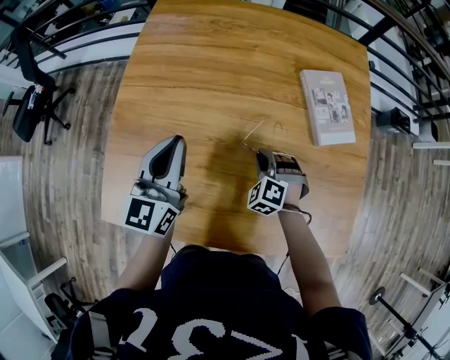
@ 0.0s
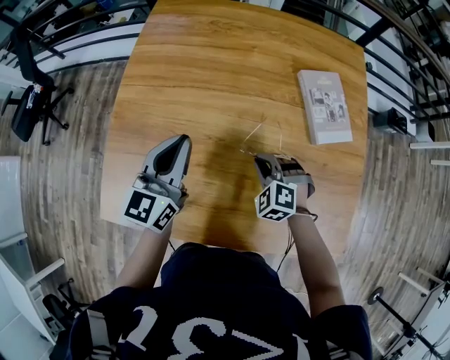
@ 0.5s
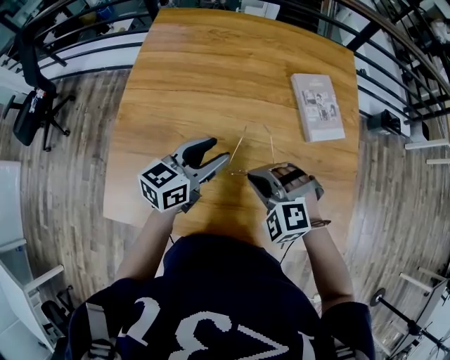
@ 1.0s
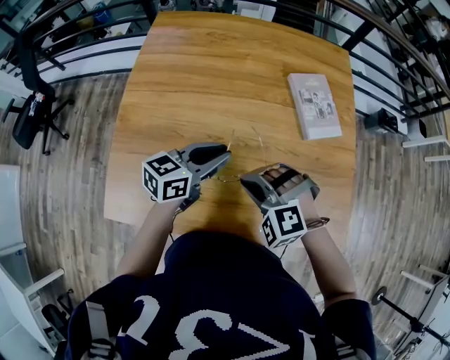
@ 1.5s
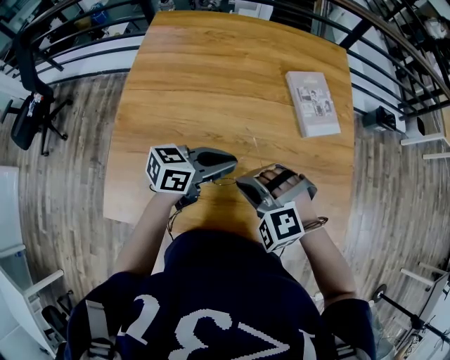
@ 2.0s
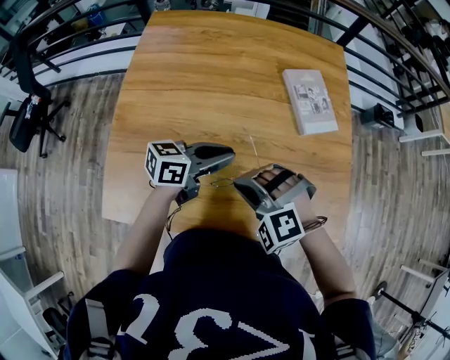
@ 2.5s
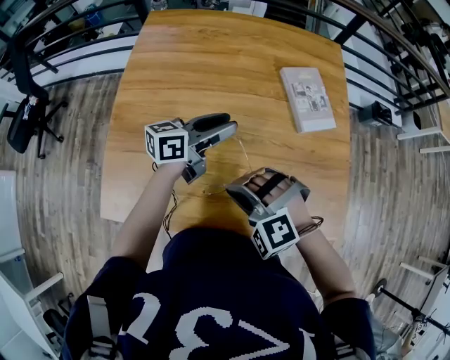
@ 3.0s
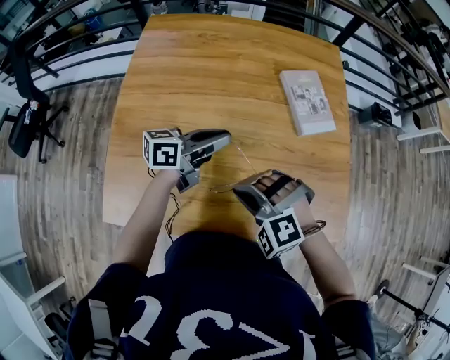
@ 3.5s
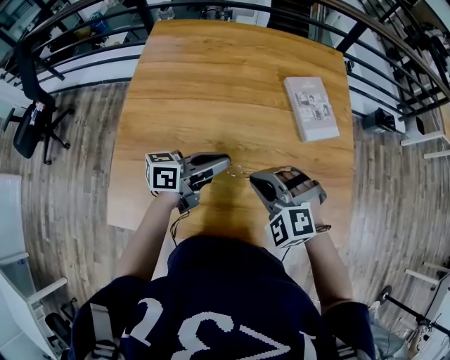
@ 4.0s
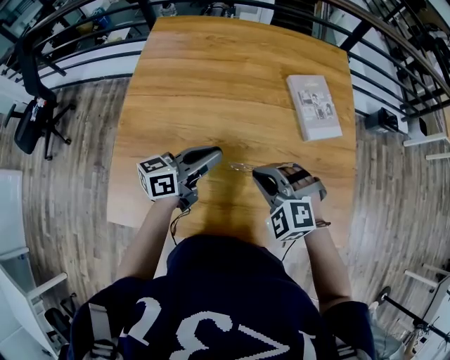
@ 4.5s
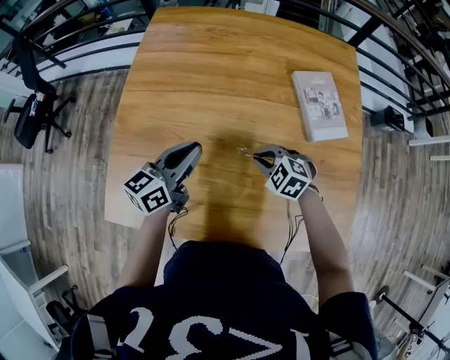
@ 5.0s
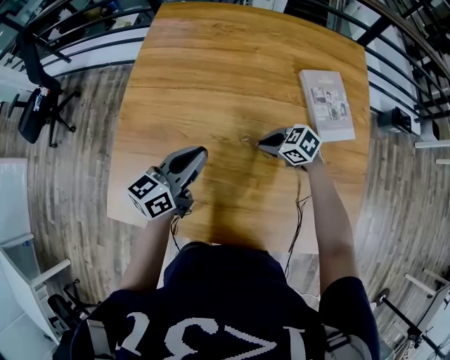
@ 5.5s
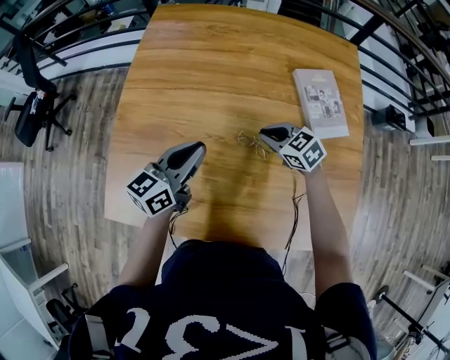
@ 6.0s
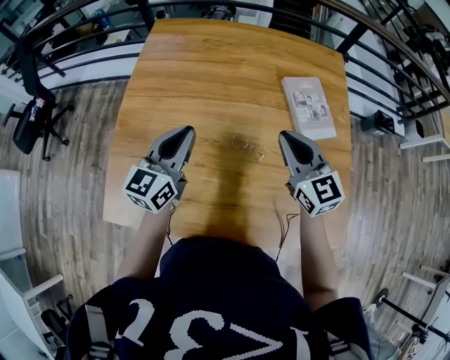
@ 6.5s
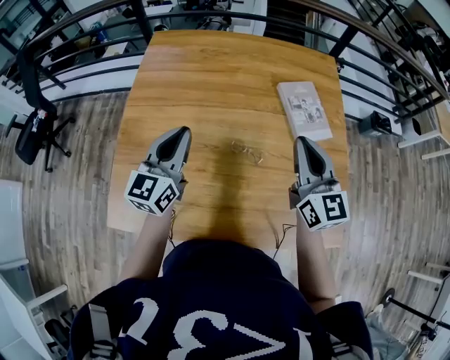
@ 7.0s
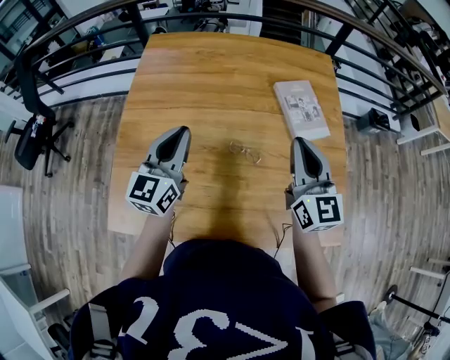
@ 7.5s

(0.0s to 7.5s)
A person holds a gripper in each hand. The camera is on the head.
0.0s - 2.0s: The left gripper is displaced to the right and backward by some 15 cm, rotates roughly 60 degrees, and opens, then closes once more; the right gripper is displaced upward and backward by approximately 20 cm, and rotates about 30 degrees.
2.0s - 4.0s: The left gripper goes forward and returns, roughly 10 cm each way, and opens, then closes again.
4.0s - 5.5s: The right gripper goes about 20 cm downward, and turns by some 60 degrees, while the left gripper moves about 5 cm, and swivels about 30 degrees.
5.5s - 7.5s: The left gripper travels upward by approximately 10 cm, and rotates some 30 degrees. The right gripper heads upward, covering approximately 30 cm, and tips its fingers upward by about 50 degrees.

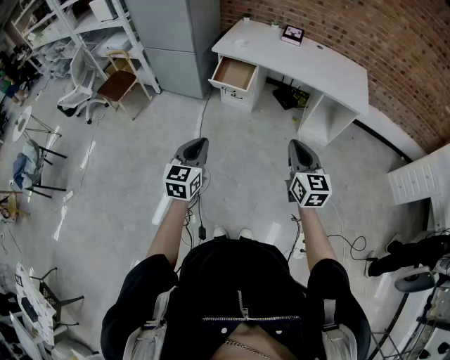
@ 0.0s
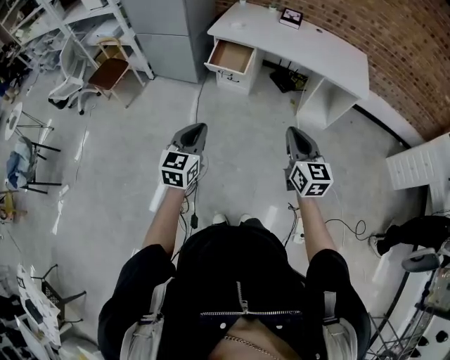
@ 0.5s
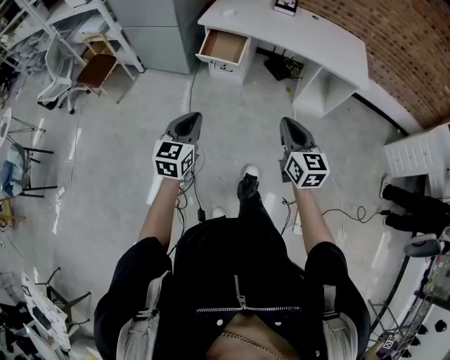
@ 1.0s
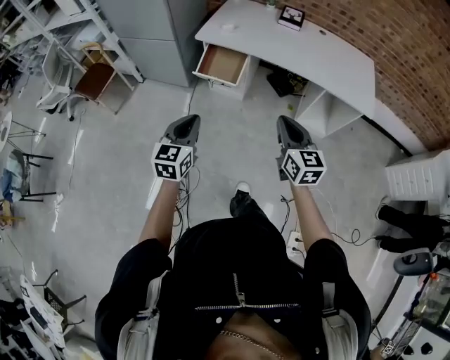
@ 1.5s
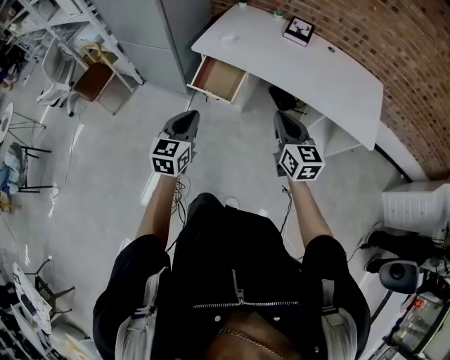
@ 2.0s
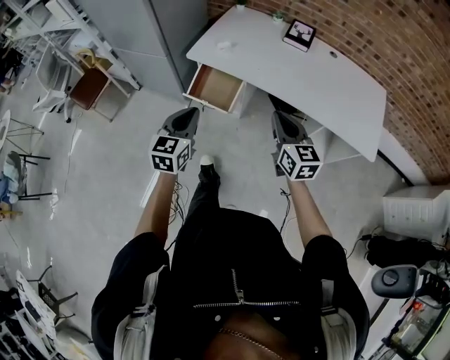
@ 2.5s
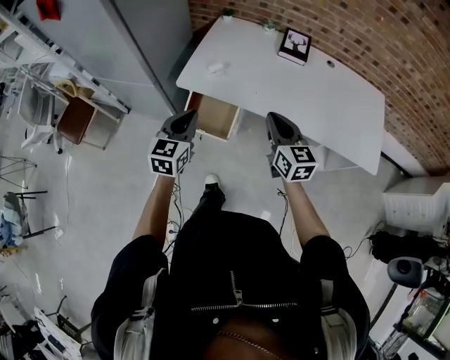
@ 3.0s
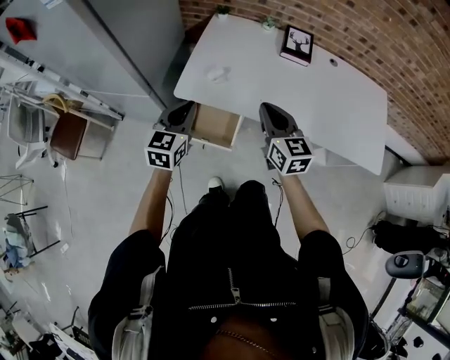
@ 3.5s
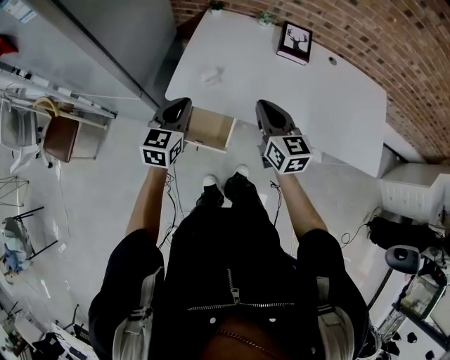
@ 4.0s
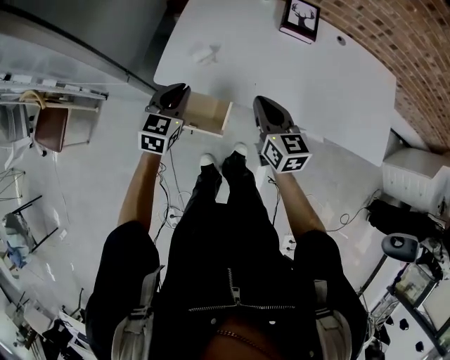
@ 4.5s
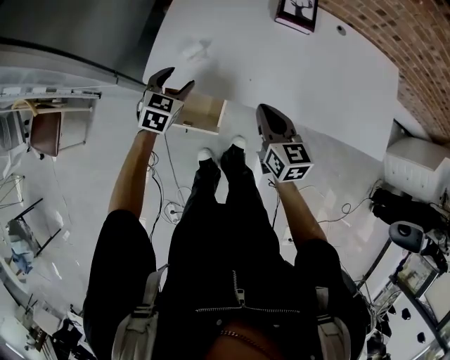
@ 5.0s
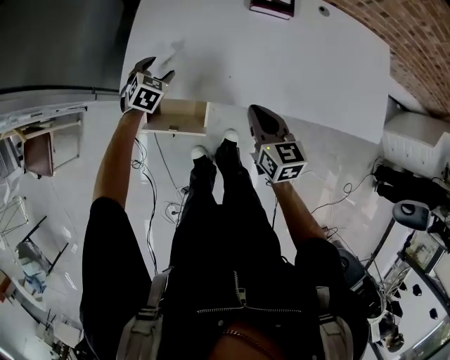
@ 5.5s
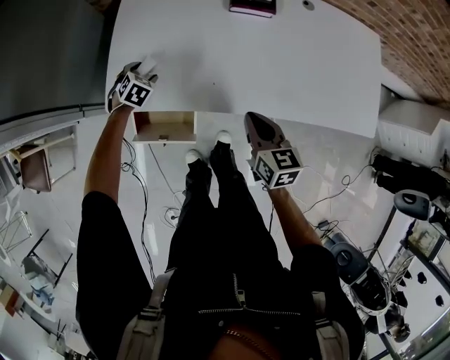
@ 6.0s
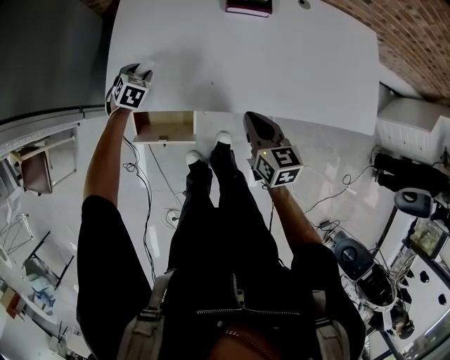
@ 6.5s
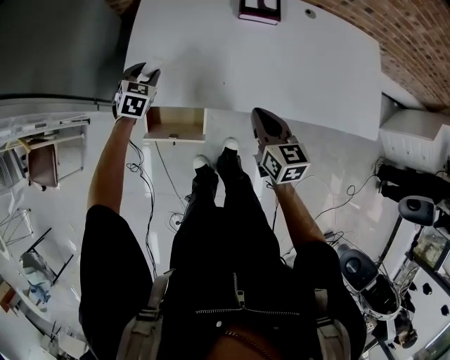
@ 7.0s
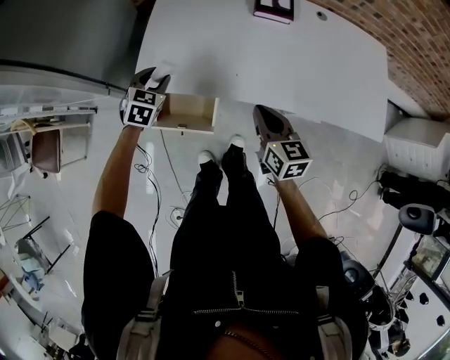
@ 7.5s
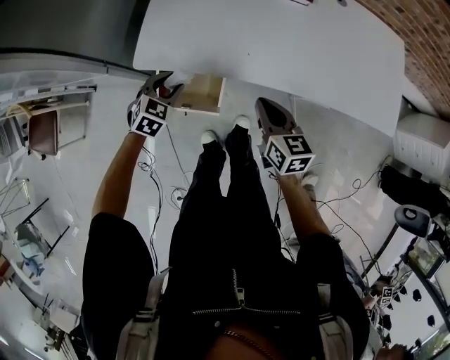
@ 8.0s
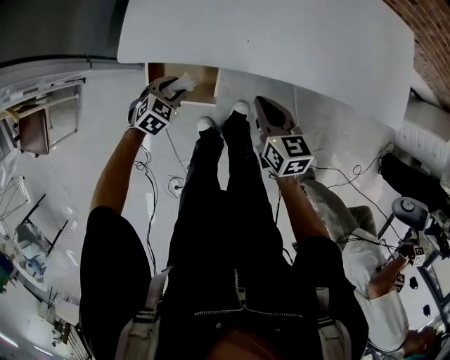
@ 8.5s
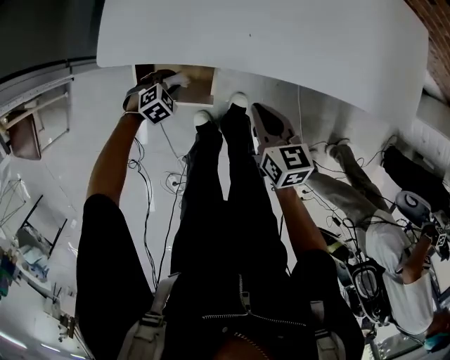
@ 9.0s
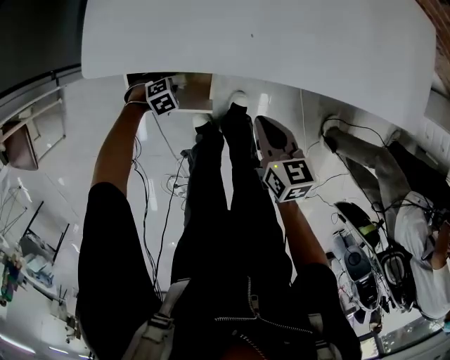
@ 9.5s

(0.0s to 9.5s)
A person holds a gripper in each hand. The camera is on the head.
0.0s - 2.0s: Both grippers travel together forward, roughly 35 cm.
2.0s - 4.0s: Both grippers move forward, roughly 35 cm.
4.0s - 5.5s: The right gripper goes roughly 15 cm downward and to the right. The left gripper goes about 25 cm downward and forward, angles its fingers downward, by approximately 30 degrees, and opens up.
5.5s - 7.5s: The left gripper is displaced upward and backward by roughly 10 cm, and closes its fingers.
7.5s - 9.5s: The right gripper travels downward by roughly 20 cm; the left gripper goes approximately 40 cm downward, and tilts its fingers roughly 40 degrees downward.

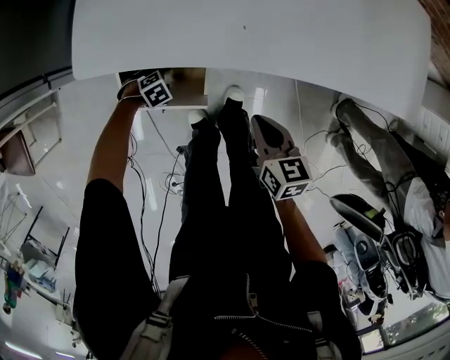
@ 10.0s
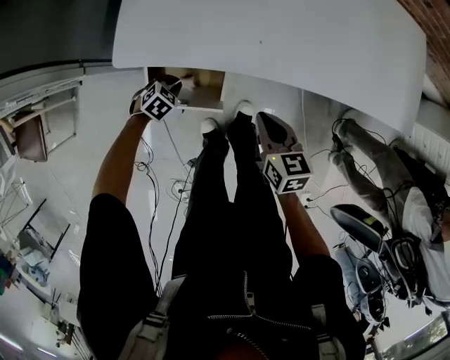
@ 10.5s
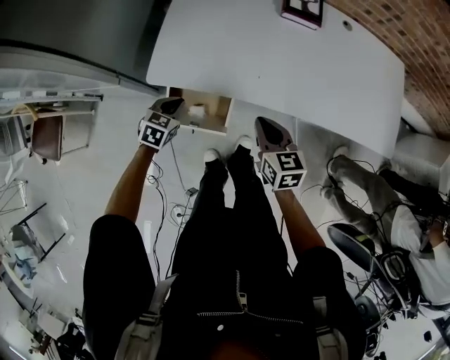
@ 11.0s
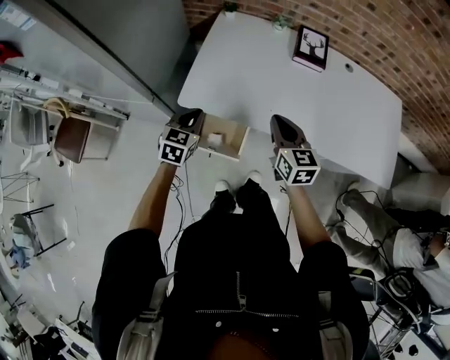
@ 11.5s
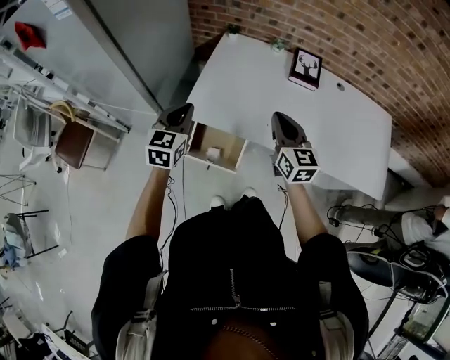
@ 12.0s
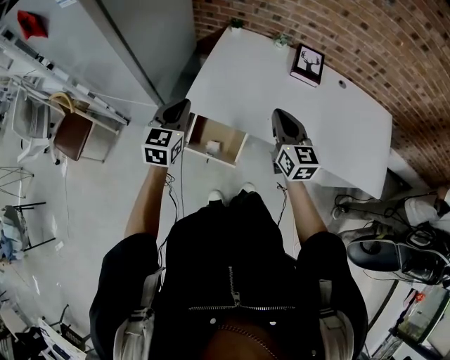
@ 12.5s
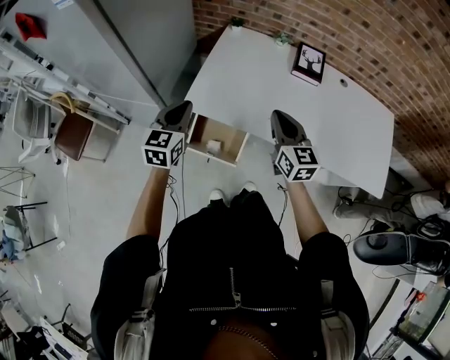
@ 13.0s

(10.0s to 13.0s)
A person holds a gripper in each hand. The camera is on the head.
10.0s - 11.5s: The right gripper travels upward by some 25 cm, and rotates about 30 degrees; the left gripper is displaced upward by roughly 40 cm, tips its fingers upward by some 50 degrees, and closes.
11.5s - 13.0s: The right gripper travels upward by about 5 cm. The left gripper shifts about 10 cm upward.

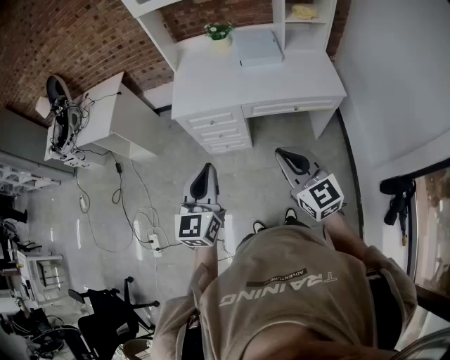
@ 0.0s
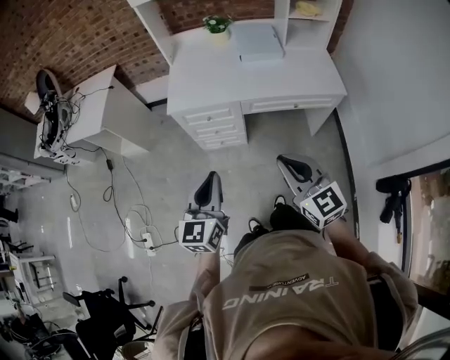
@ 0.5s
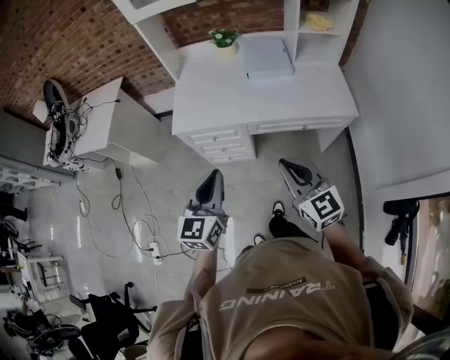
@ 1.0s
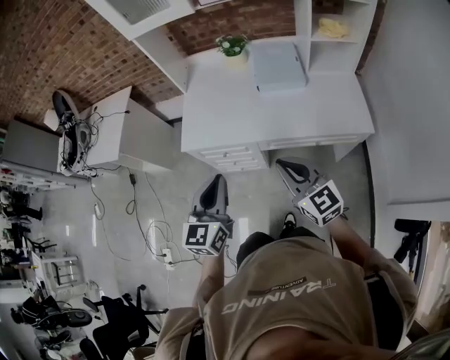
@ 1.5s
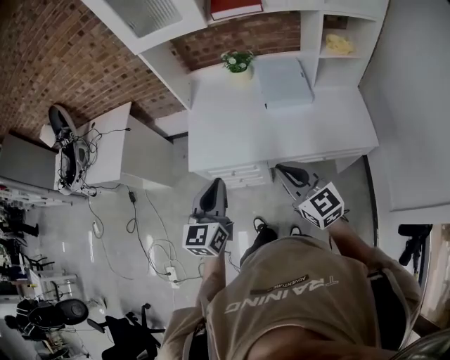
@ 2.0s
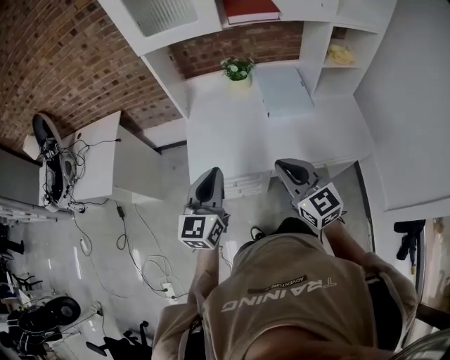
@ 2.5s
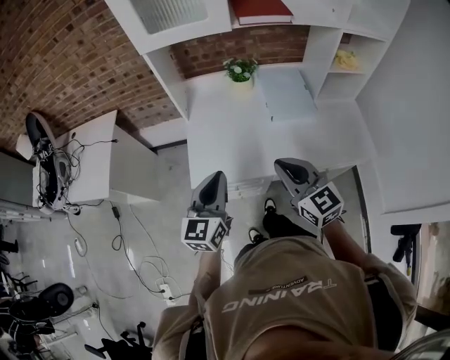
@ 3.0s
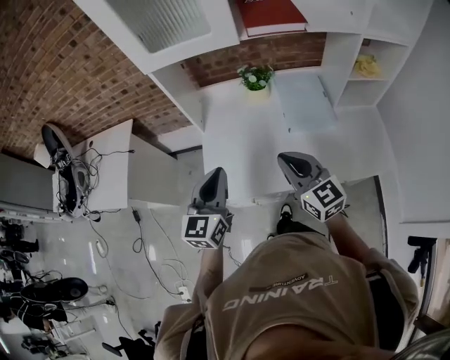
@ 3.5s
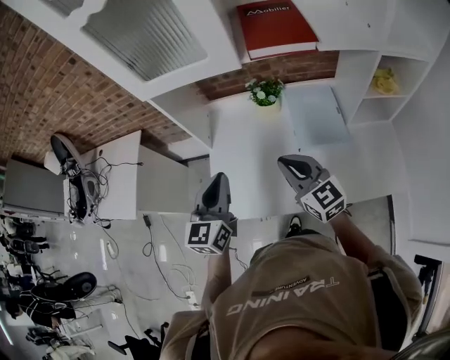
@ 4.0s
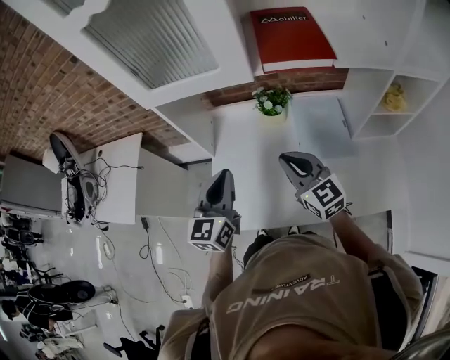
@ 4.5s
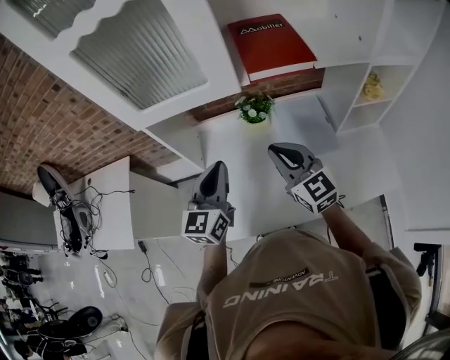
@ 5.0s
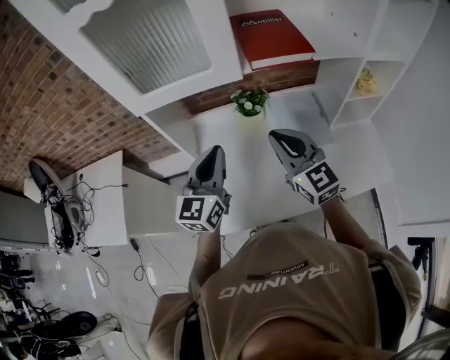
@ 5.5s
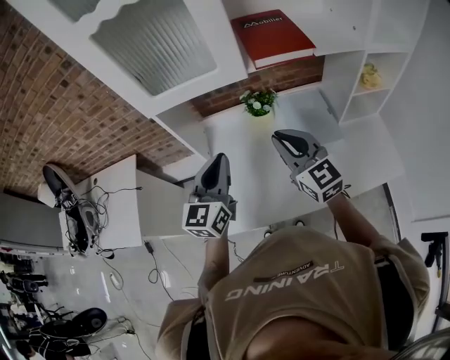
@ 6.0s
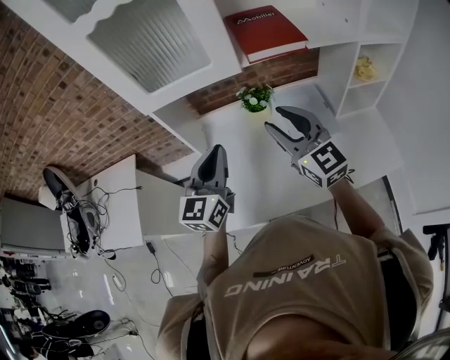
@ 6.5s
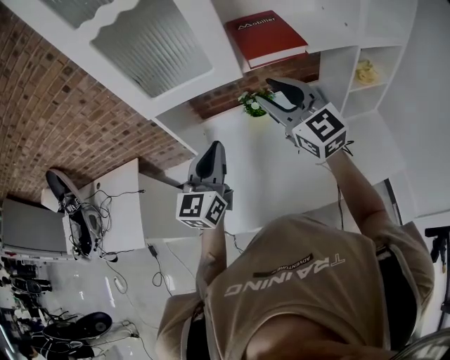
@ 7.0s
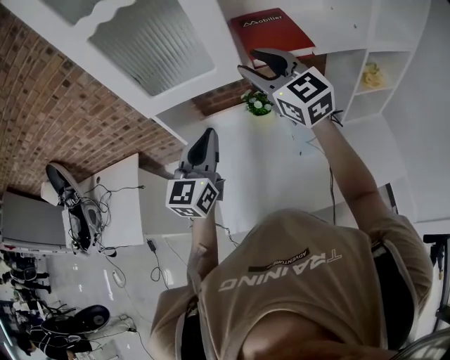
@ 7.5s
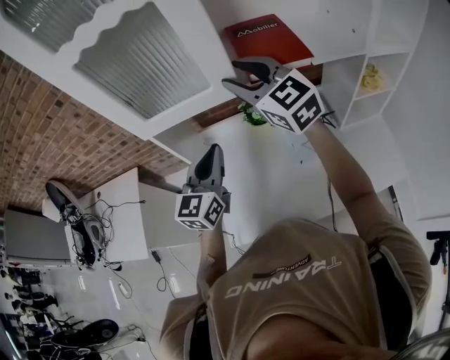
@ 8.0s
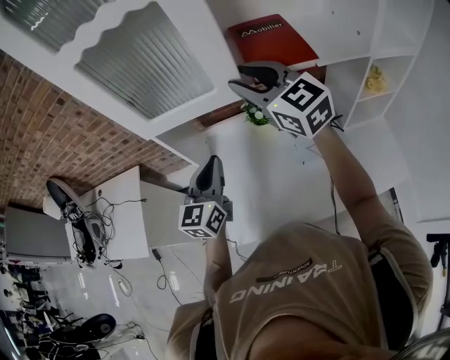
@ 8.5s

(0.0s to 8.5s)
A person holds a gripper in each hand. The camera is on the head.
0.0s - 2.0s: The grippers both shift forward by about 30 cm.
2.0s - 4.0s: The two grippers go about 30 cm forward.
4.0s - 6.5s: The left gripper goes roughly 10 cm upward and forward; the right gripper goes some 15 cm upward and forward, and opens up.
6.5s - 8.5s: The right gripper goes about 15 cm forward and upward, while the left gripper is displaced forward by about 5 cm.
